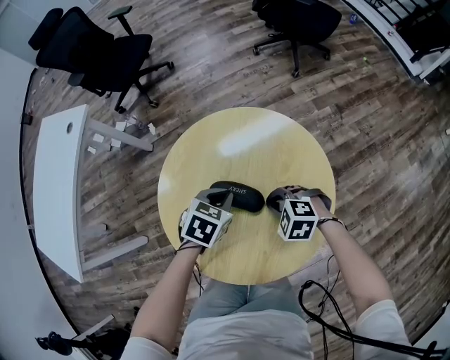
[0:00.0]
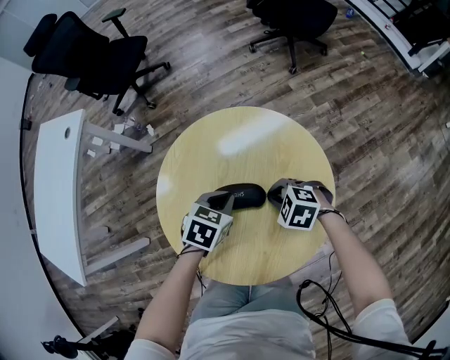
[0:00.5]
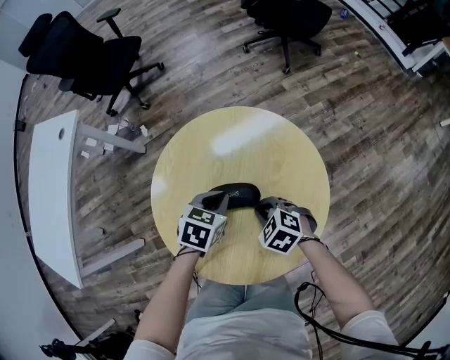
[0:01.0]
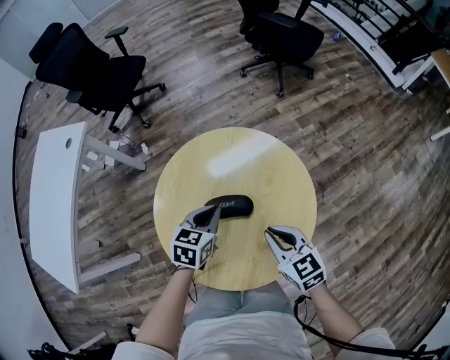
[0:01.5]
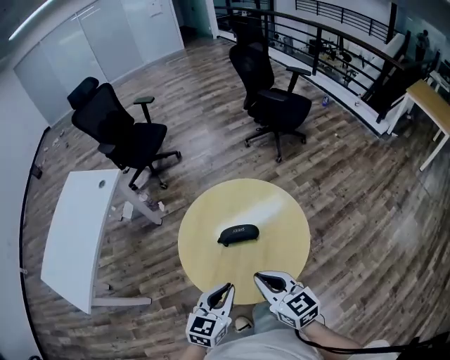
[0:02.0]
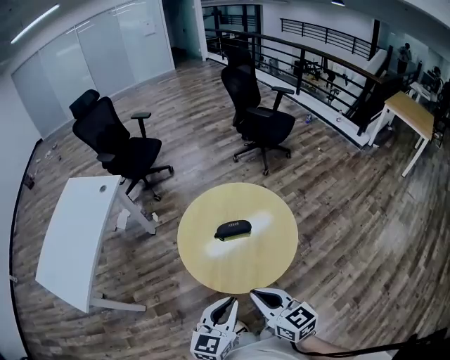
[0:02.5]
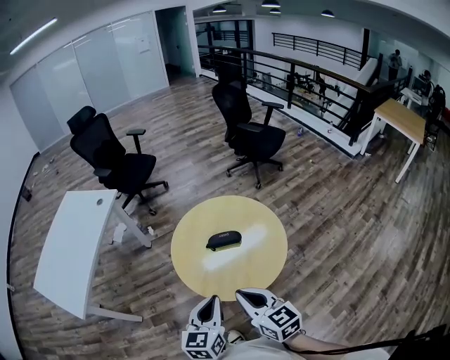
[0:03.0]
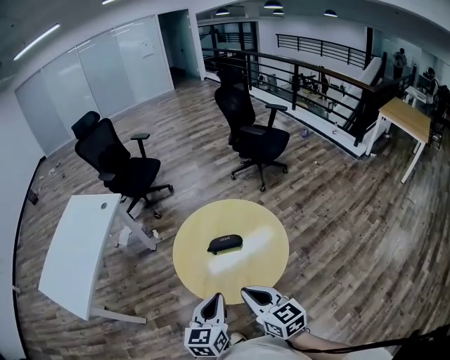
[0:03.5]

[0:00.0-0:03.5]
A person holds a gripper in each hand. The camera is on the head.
0:00.0 to 0:02.0: The left gripper moves roughly 30 cm, and tips its fingers upward by approximately 30 degrees; the right gripper travels upward by some 30 cm, and points its fingers about 40 degrees further upward.
0:02.0 to 0:03.5: Both grippers move backward and upward, approximately 10 cm.

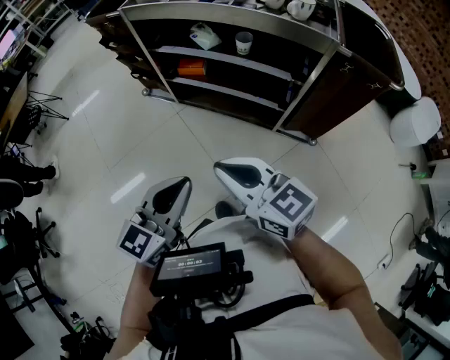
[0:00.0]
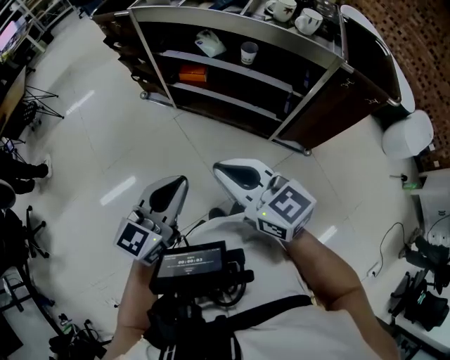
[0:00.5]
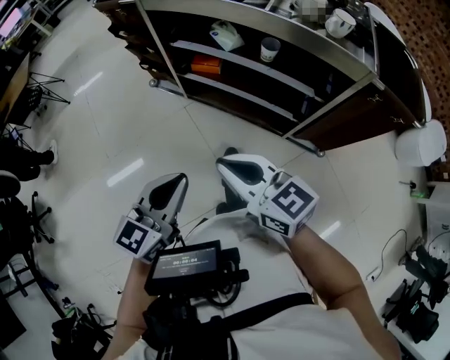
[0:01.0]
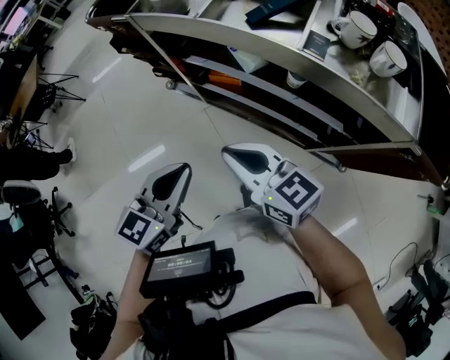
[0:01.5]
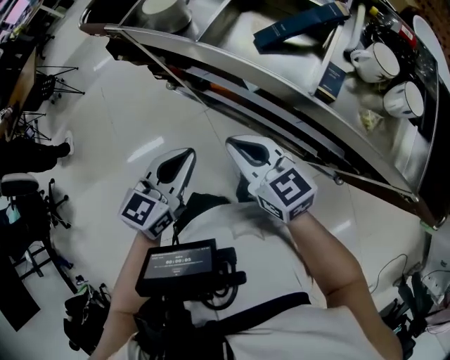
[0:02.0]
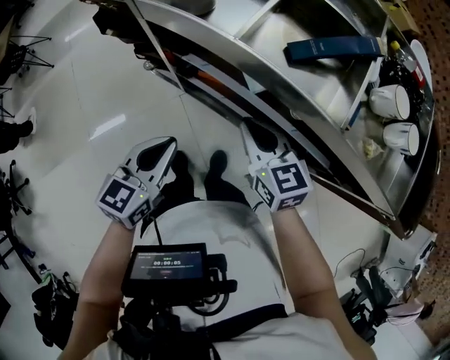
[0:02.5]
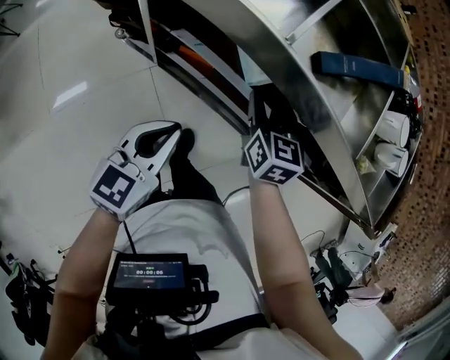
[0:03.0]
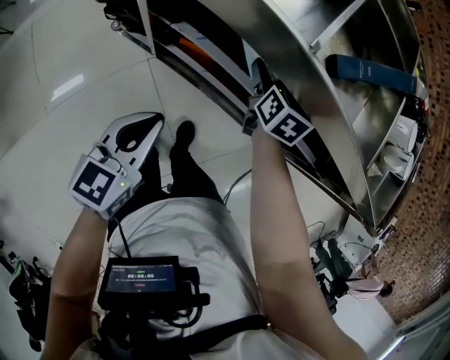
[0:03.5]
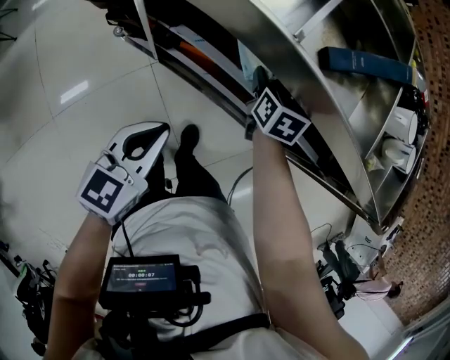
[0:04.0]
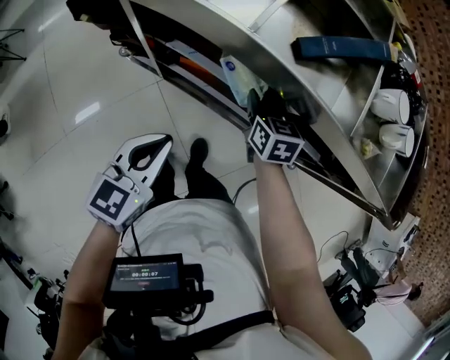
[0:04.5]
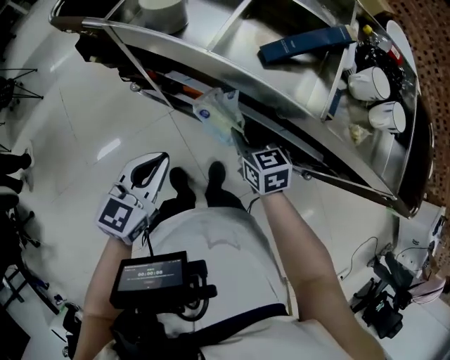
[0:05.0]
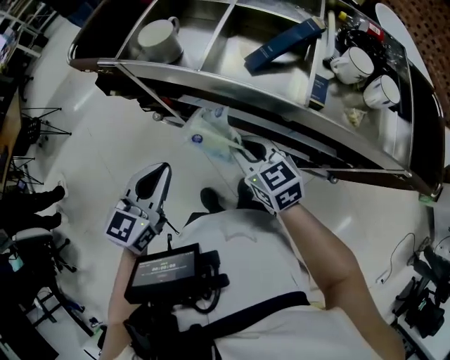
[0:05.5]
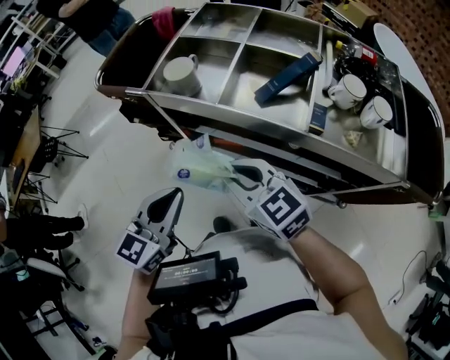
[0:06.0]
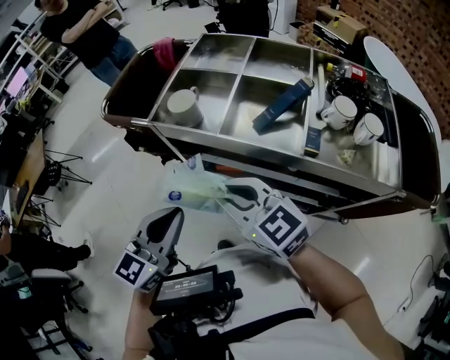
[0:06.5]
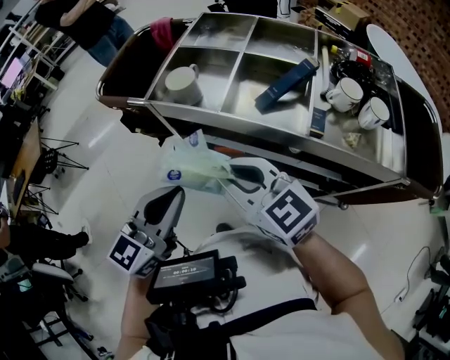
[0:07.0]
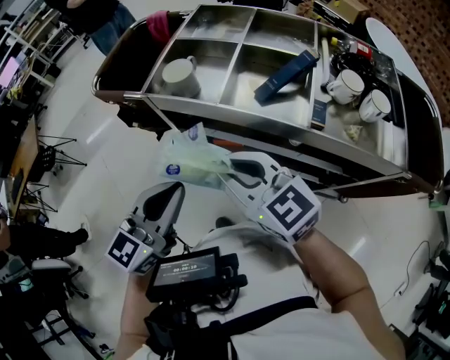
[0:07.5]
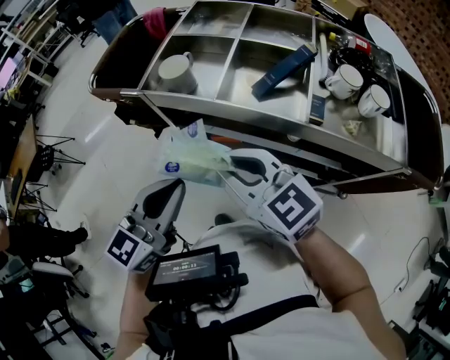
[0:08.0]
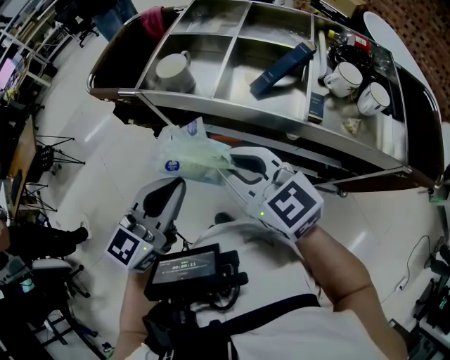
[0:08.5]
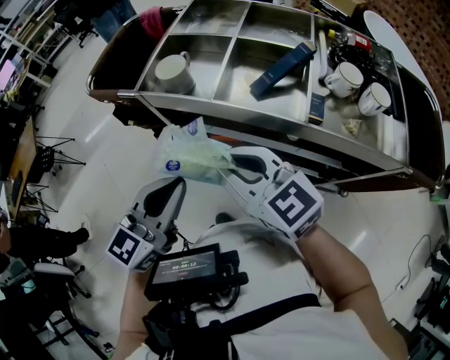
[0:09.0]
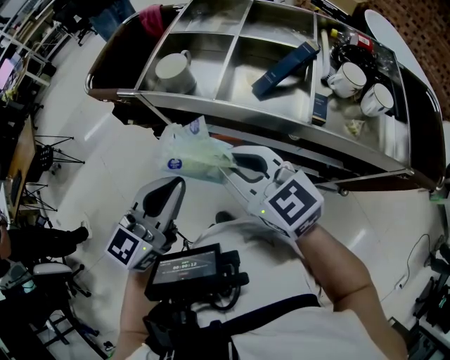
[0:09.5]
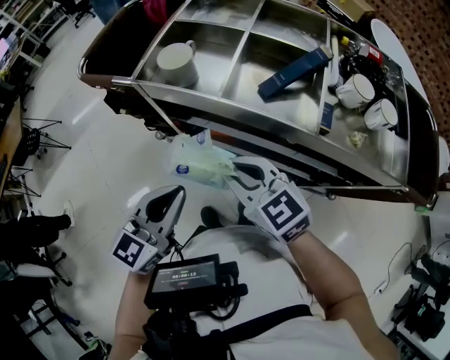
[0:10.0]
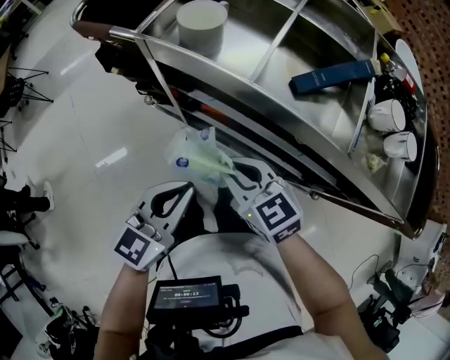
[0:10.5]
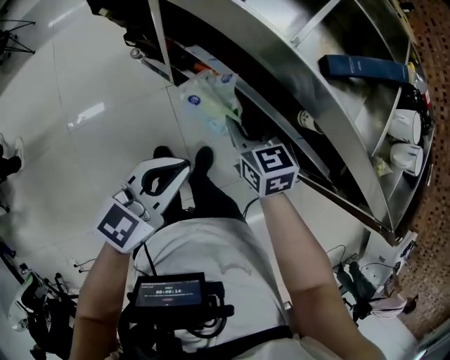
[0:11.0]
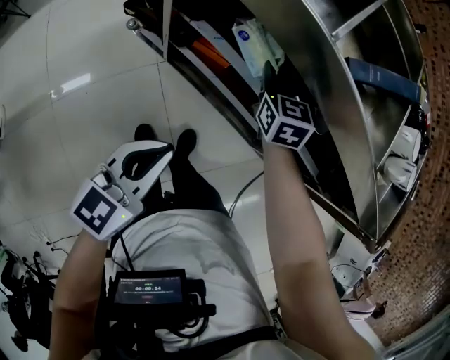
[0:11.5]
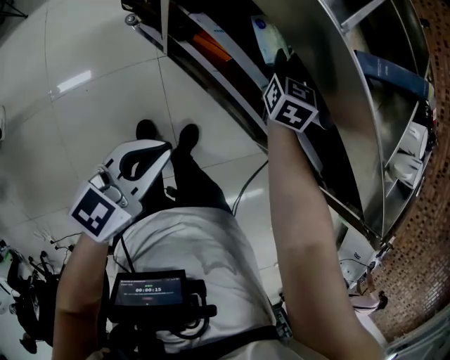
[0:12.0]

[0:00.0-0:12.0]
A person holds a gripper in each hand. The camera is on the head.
0:00.0 to 0:02.0: Both grippers travel together forward, some 25 cm.
0:02.0 to 0:04.0: The left gripper heads downward, covering some 10 cm, while the right gripper moves approximately 30 cm, swivels some 50 degrees, and opens its fingers.
0:04.0 to 0:06.0: The right gripper heads upward, backward and to the left, covering some 35 cm, and swivels approximately 50 degrees; the left gripper travels upward by approximately 20 cm.
0:06.0 to 0:08.0: Both grippers travel together upward, some 5 cm.
0:08.0 to 0:10.0: Both grippers travel together downward, approximately 5 cm.
0:10.0 to 0:12.0: The right gripper travels forward, downward and to the right by some 35 cm, and swivels roughly 40 degrees, while the left gripper goes roughly 15 cm downward.

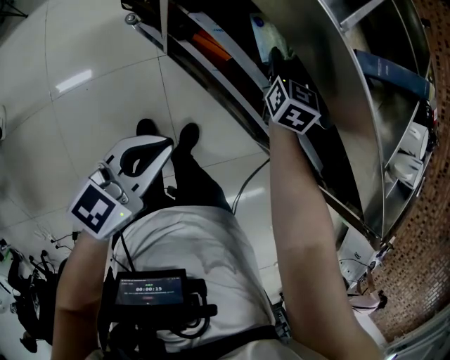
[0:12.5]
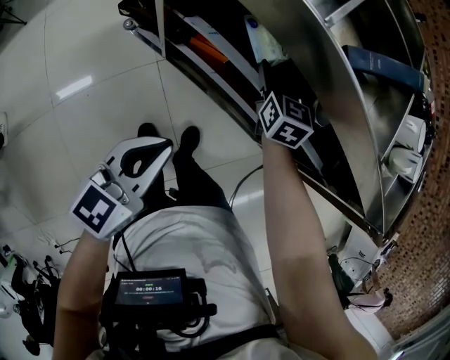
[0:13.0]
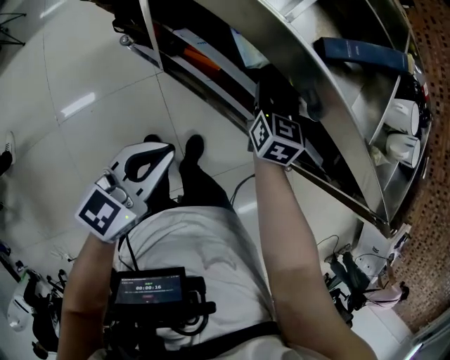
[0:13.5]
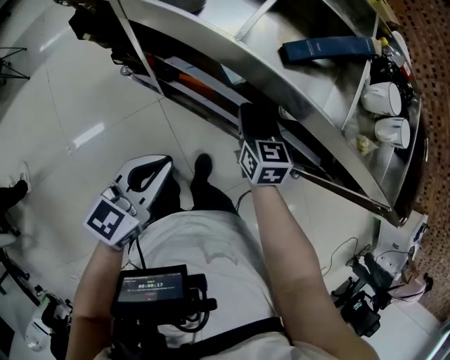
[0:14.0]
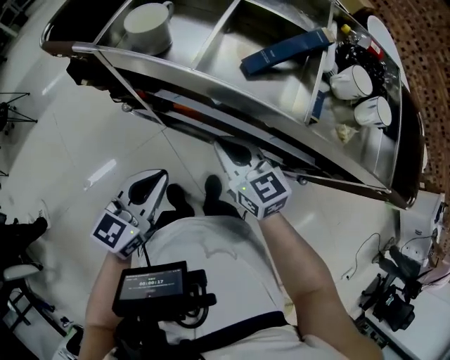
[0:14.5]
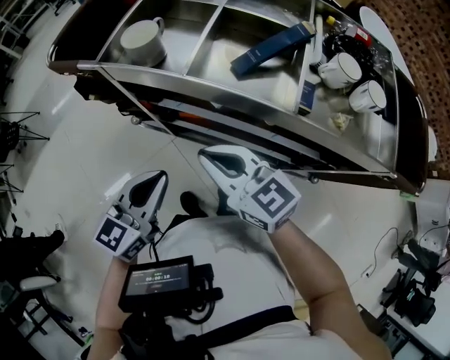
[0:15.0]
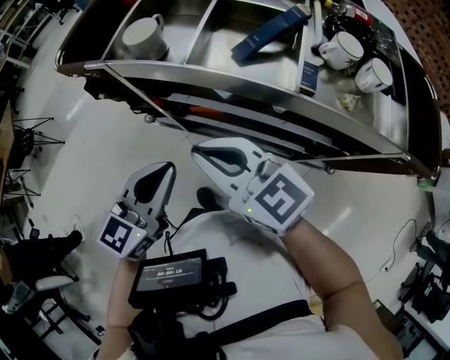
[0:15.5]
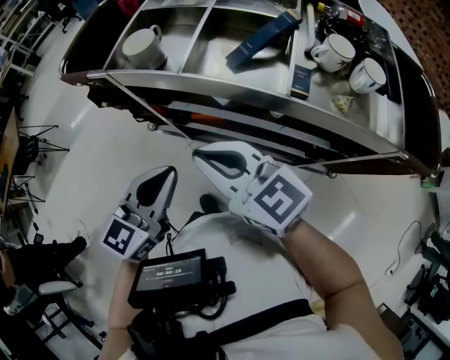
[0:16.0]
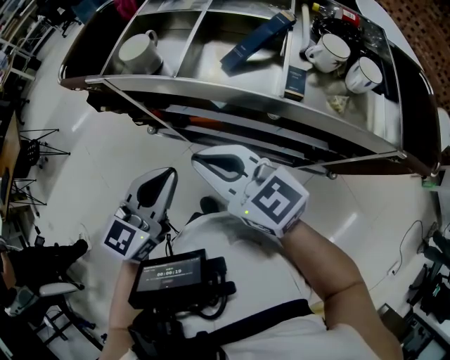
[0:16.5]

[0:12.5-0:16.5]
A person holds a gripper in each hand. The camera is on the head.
0:12.5 to 0:14.5: The right gripper is displaced backward and upward by about 20 cm, swivels roughly 30 degrees, and closes. Meanwhile the left gripper heads upward, covering some 5 cm.
0:14.5 to 0:16.5: The left gripper travels upward by about 10 cm, while the right gripper is displaced upward and backward by some 15 cm.

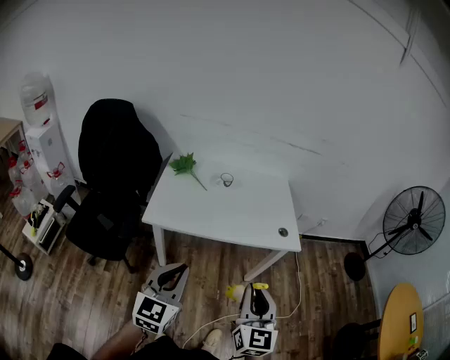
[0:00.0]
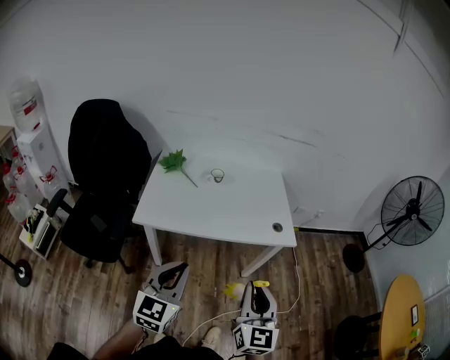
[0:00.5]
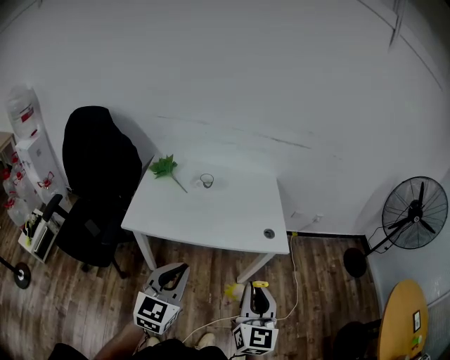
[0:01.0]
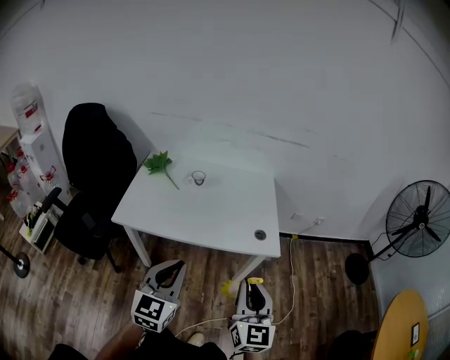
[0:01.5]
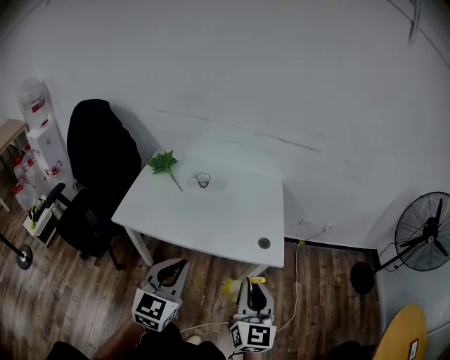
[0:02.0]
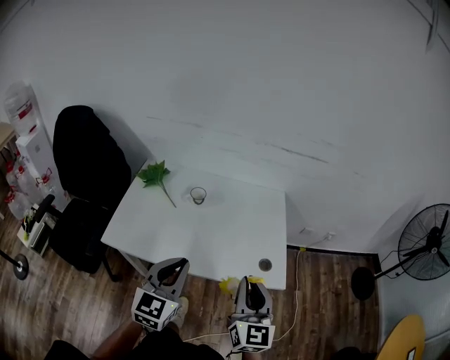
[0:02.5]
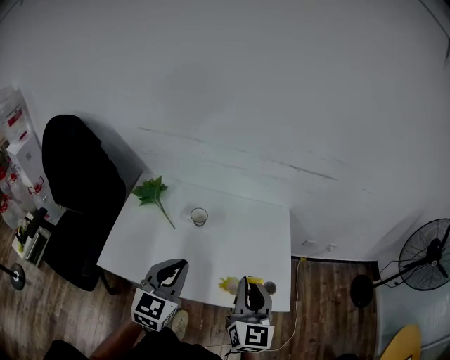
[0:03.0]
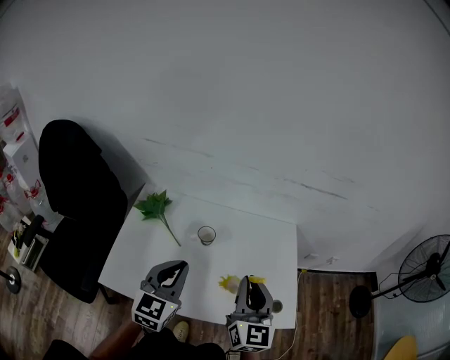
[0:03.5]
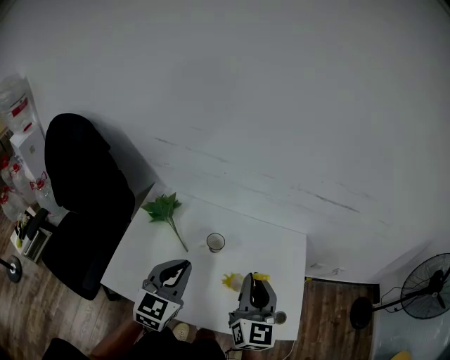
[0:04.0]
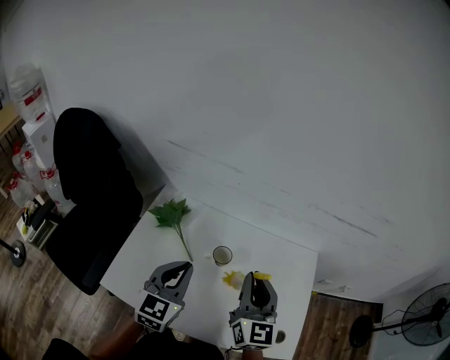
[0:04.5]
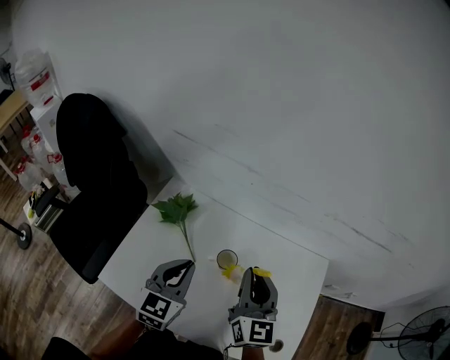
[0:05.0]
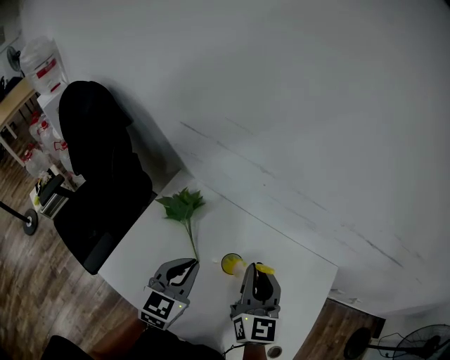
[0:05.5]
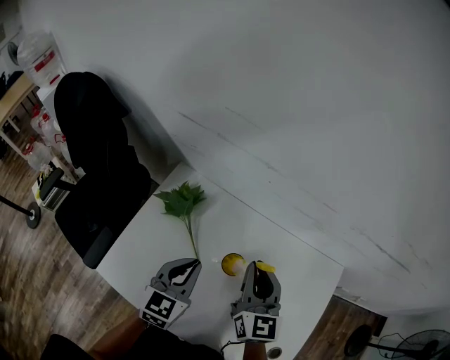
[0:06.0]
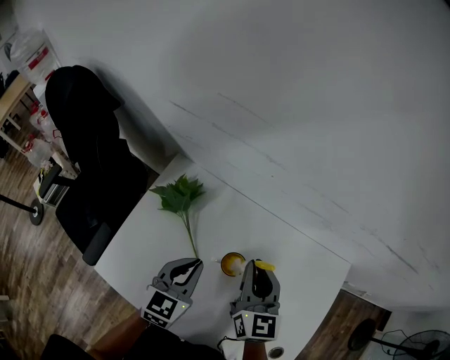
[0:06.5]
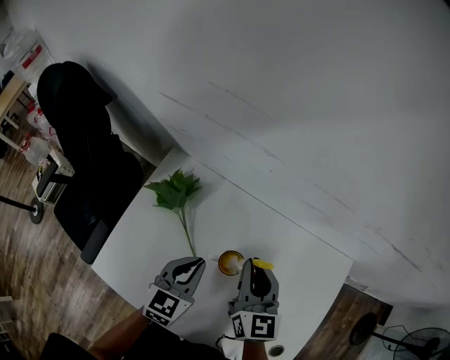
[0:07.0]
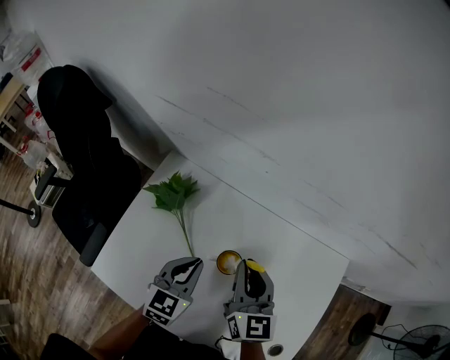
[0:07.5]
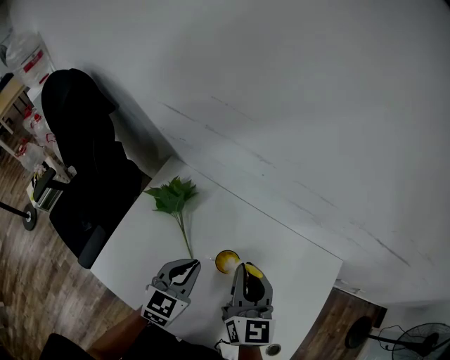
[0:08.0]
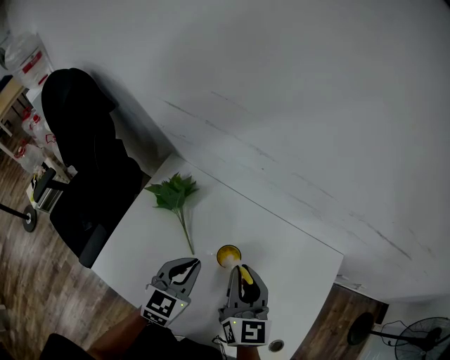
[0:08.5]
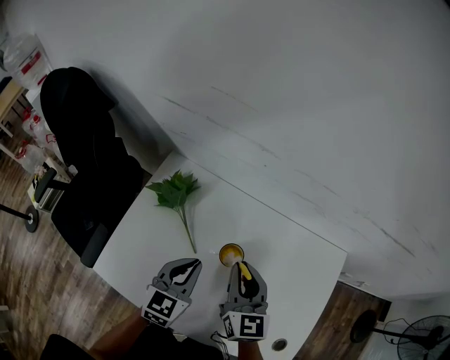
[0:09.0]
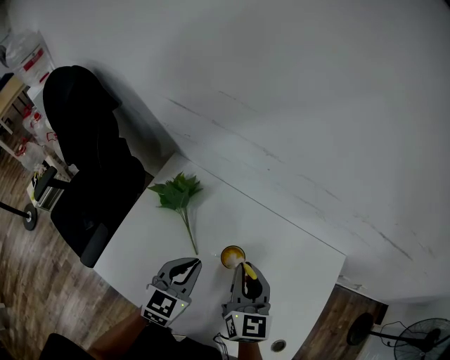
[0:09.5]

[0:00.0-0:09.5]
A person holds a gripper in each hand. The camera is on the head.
0:00.0 to 0:02.0: Both grippers move to the right and forward, approximately 25 cm.
0:02.0 to 0:04.0: The two grippers travel together, forward and to the left, about 40 cm.
0:04.0 to 0:05.5: The right gripper goes approximately 20 cm forward. The left gripper heads forward and downward, covering about 15 cm.
0:05.5 to 0:07.5: The two grippers go some 10 cm downward.
0:07.5 to 0:09.5: The grippers move only a little.
